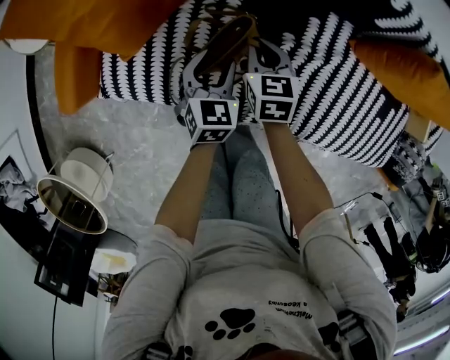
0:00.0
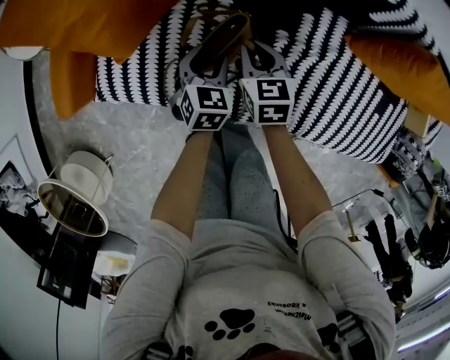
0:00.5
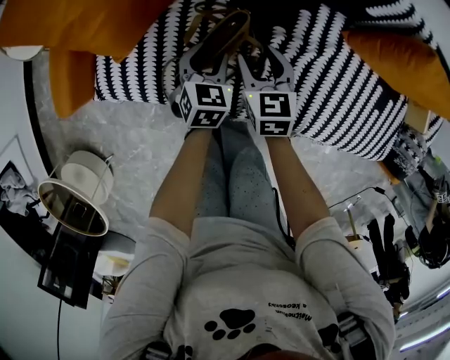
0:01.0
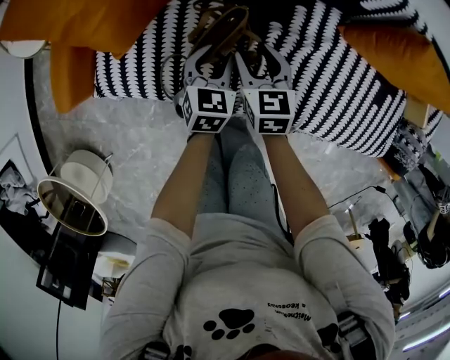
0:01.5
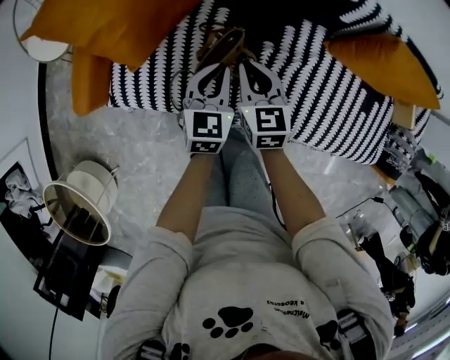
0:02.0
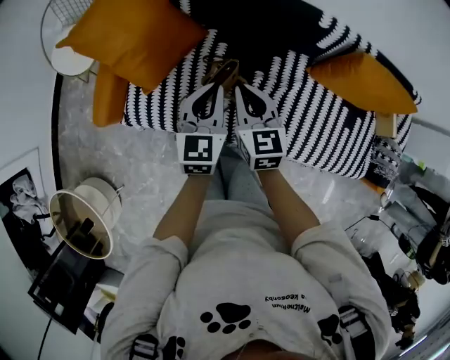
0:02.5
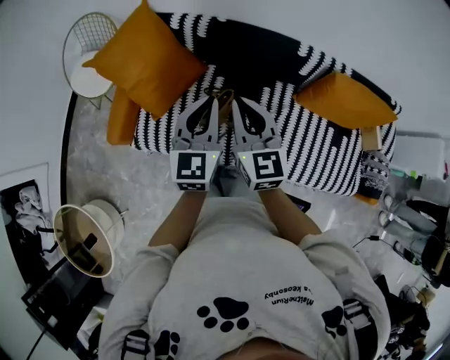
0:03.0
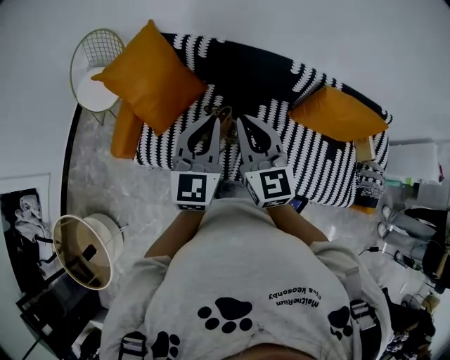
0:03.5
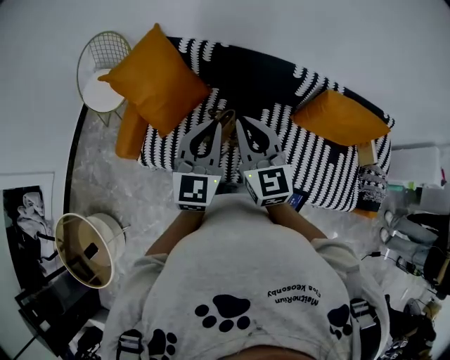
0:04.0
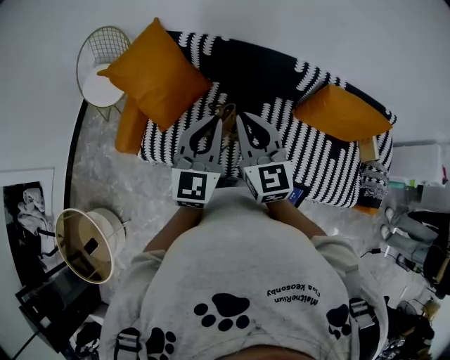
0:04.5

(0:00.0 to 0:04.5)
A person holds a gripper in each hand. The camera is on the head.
0:00.0 - 0:02.0: The right gripper heads upward and backward, covering roughly 15 cm, and opens and closes again, while the left gripper moves upward, some 15 cm, and closes its fingers.
0:02.0 - 0:04.5: The two grippers go roughly 35 cm upward. The right gripper turns by about 30 degrees. Meanwhile the left gripper turns by roughly 20 degrees.

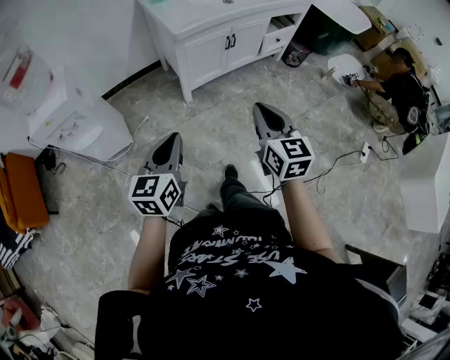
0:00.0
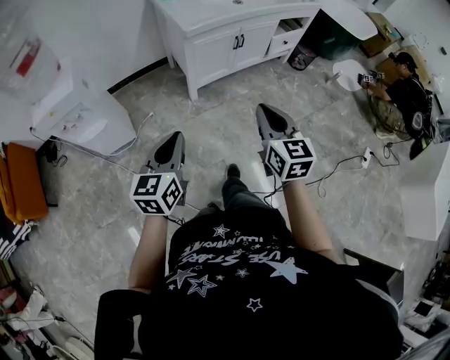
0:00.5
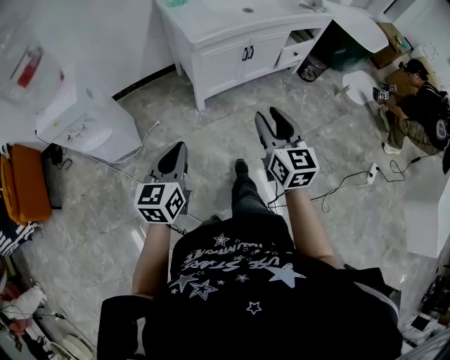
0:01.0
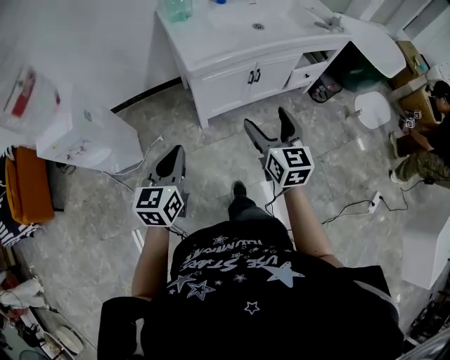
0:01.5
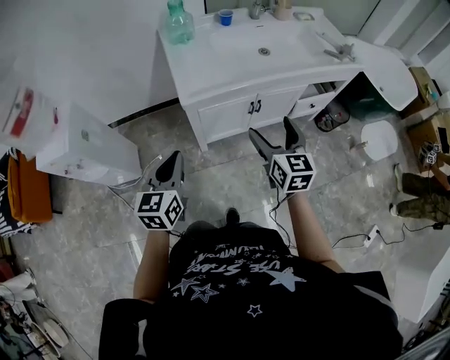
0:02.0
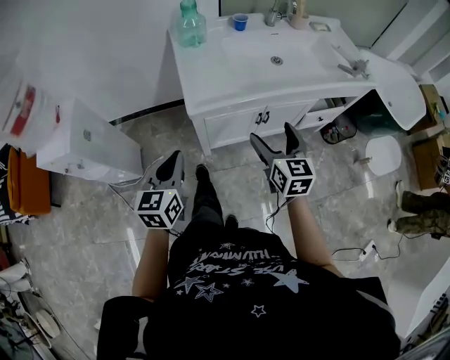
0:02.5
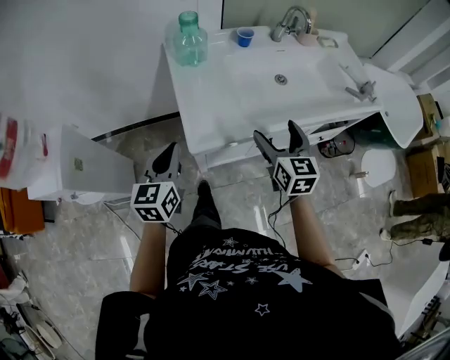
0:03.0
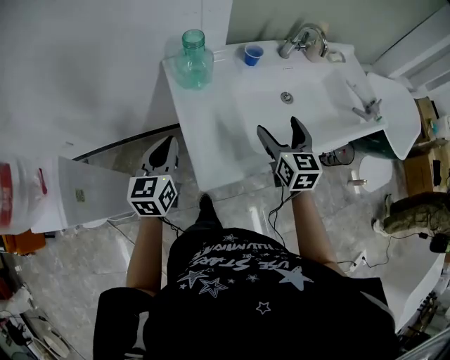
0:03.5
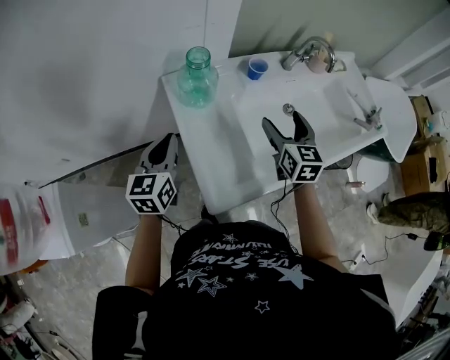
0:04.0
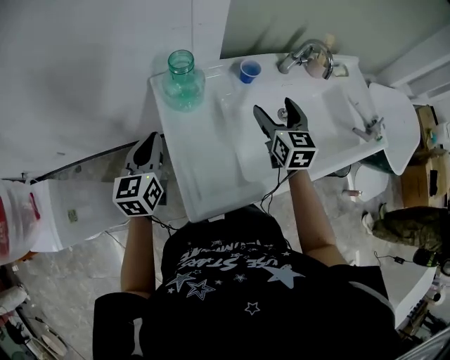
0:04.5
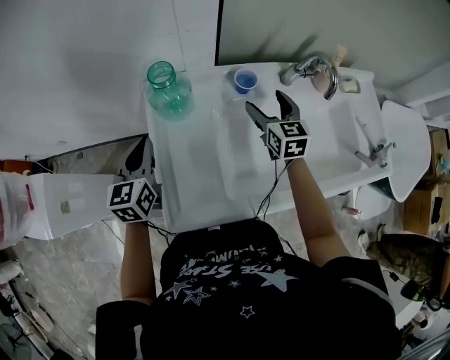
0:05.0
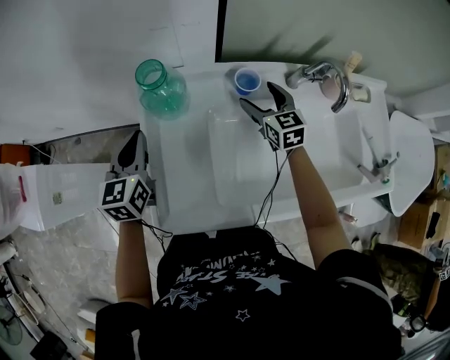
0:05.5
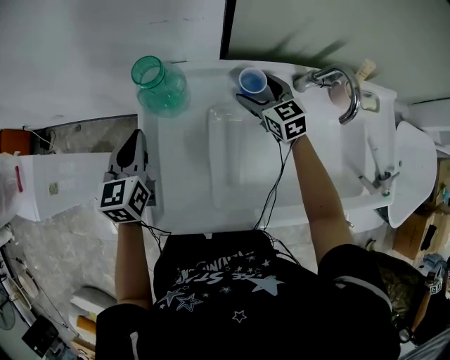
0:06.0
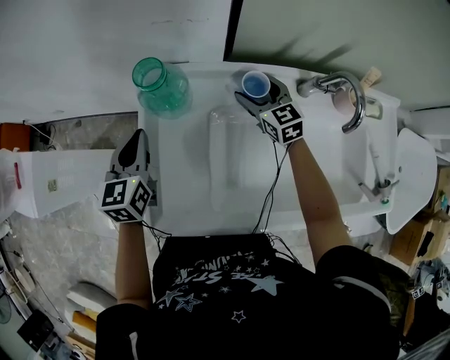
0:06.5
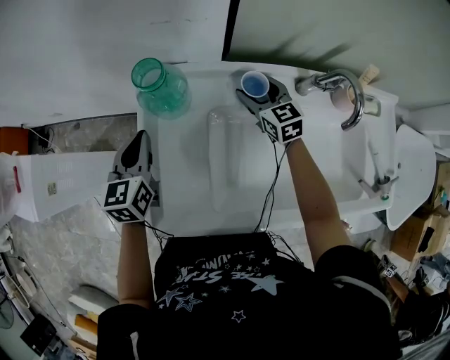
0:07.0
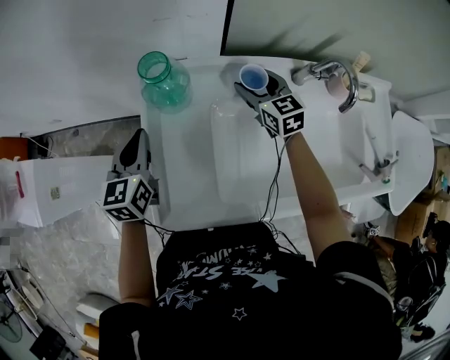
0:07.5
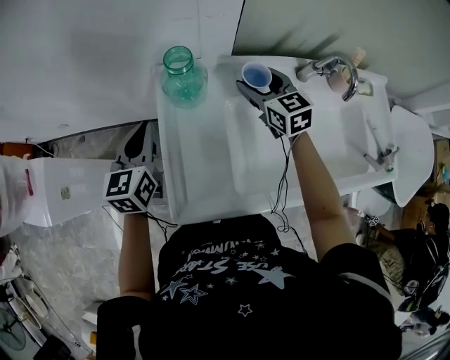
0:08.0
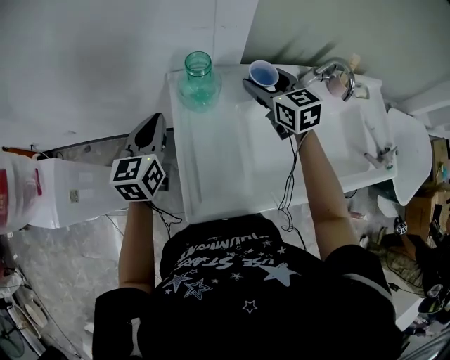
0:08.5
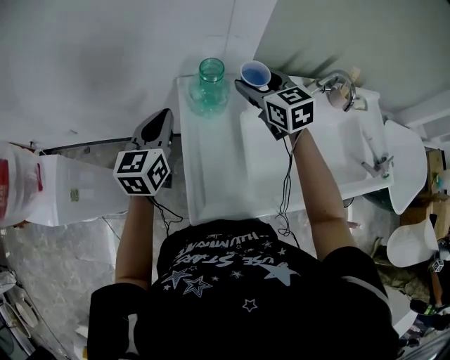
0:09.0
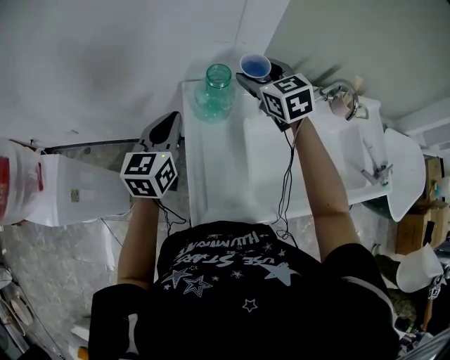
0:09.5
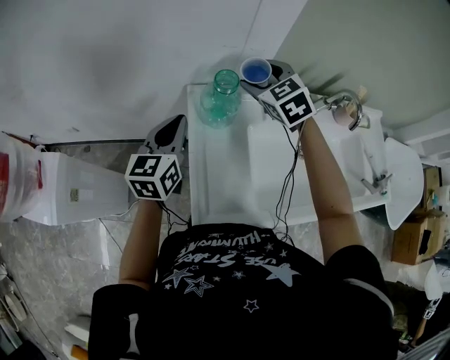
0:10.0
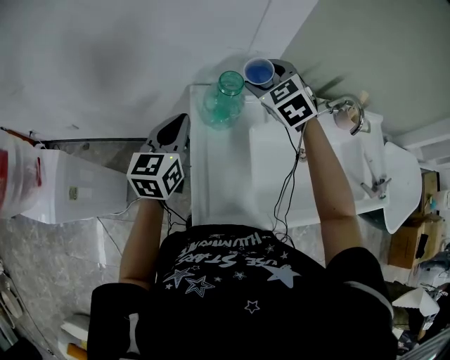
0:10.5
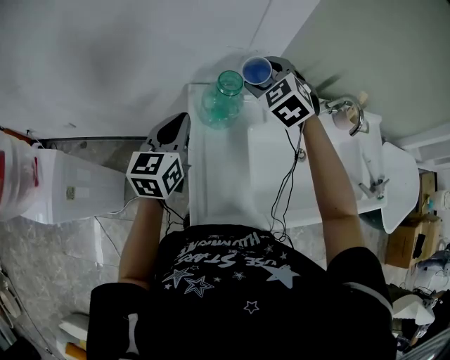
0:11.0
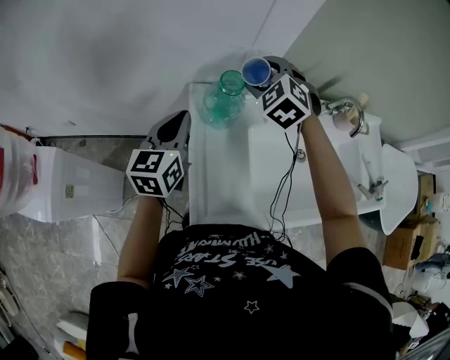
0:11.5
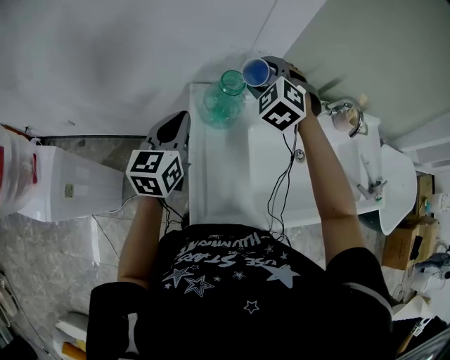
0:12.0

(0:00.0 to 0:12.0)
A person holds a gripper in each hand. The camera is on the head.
0:00.0 - 0:02.0: The grippers both shift forward by roughly 35 cm. The right gripper opens its fingers.
0:02.0 - 0:04.0: Both grippers are carried forward, about 40 cm.
0:04.0 - 0:06.0: The right gripper shifts by some 25 cm, and rotates roughly 40 degrees. Meanwhile the left gripper changes place by approximately 10 cm, and rotates about 30 degrees.
0:06.0 - 0:08.0: The left gripper changes place by some 5 cm. The right gripper heads upward and to the left, covering roughly 10 cm.
0:08.0 - 0:10.0: The right gripper shifts some 15 cm to the left and upward, and turns by roughly 30 degrees.
0:10.0 - 0:12.0: The right gripper swivels some 30 degrees.

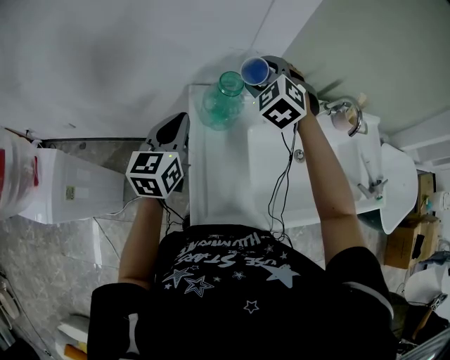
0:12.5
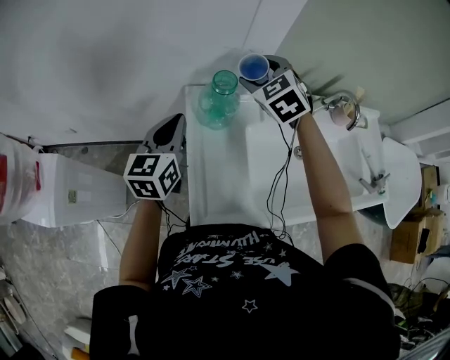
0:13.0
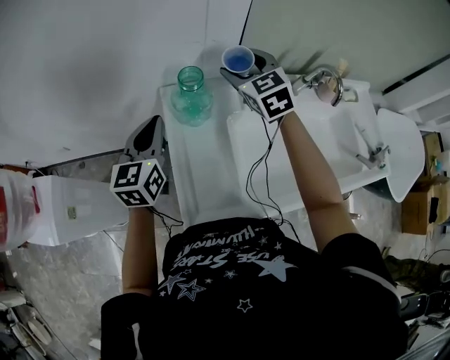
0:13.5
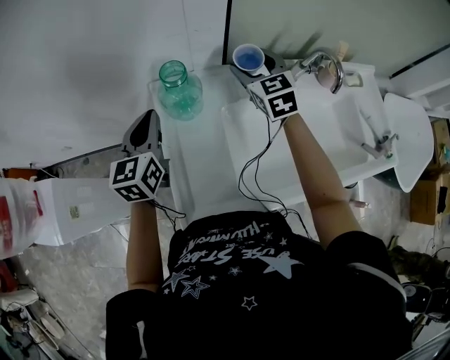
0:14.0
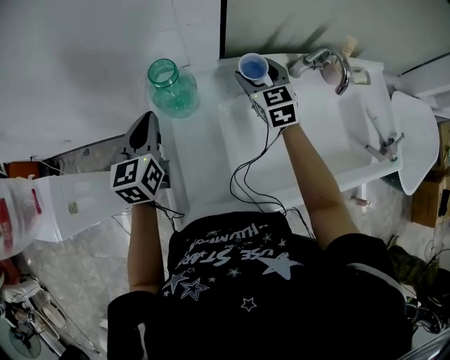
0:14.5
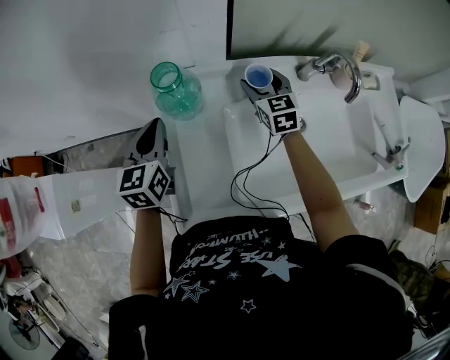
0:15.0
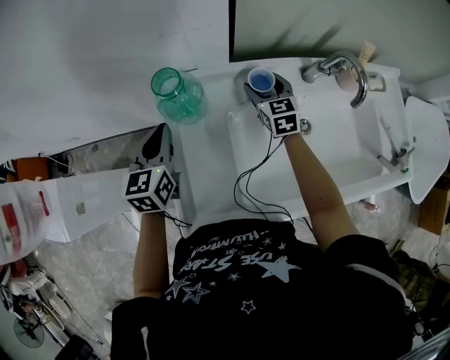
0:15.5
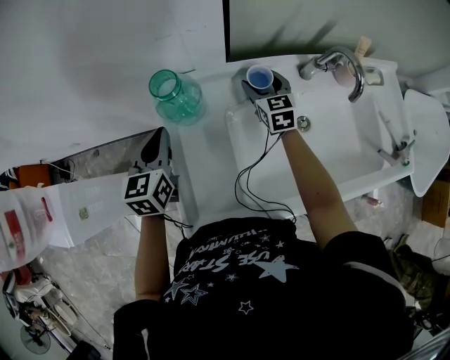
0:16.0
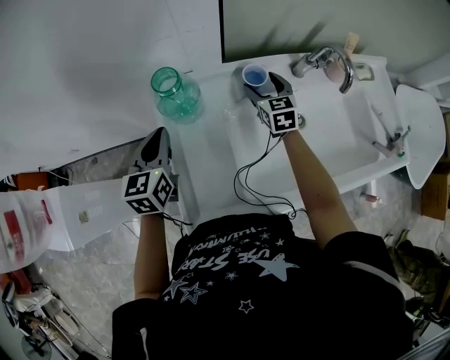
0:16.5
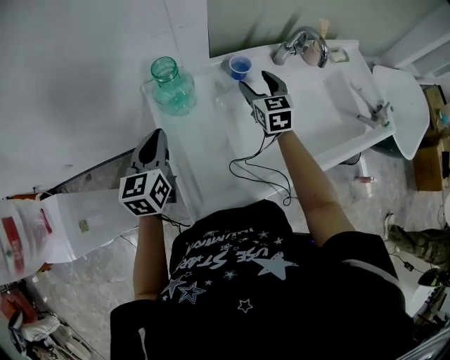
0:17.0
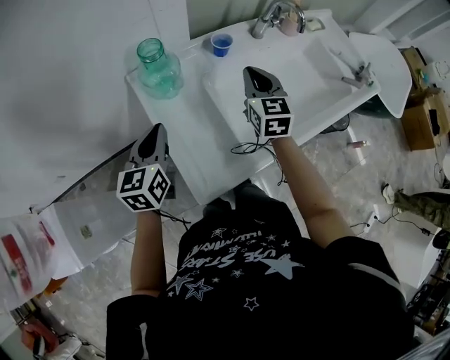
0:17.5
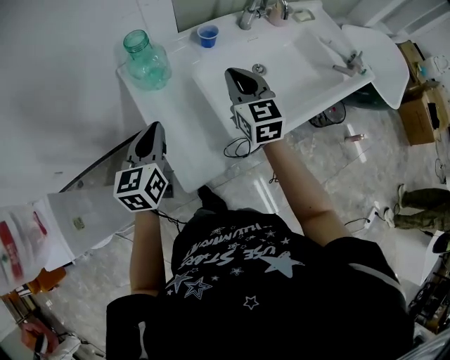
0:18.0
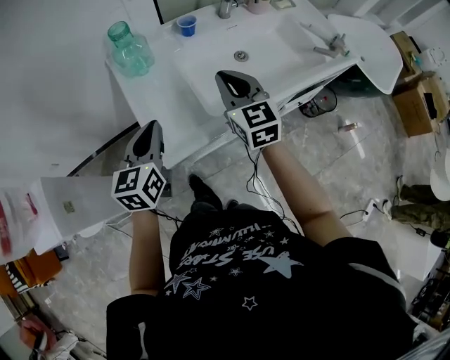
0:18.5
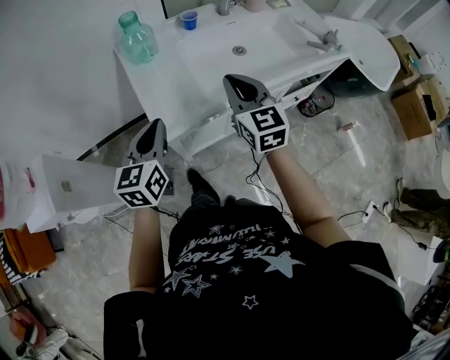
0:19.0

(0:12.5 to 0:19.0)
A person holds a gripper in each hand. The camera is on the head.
0:12.5 - 0:14.5: The right gripper travels to the right and downward by approximately 20 cm, and rolls clockwise, seen from behind, by about 40 degrees, while the left gripper moves to the right, about 5 cm.
0:14.5 - 0:17.0: The grippers both shift backward by approximately 5 cm.
0:17.0 - 0:19.0: The right gripper goes some 35 cm backward, and closes. The left gripper goes some 25 cm backward and to the right.

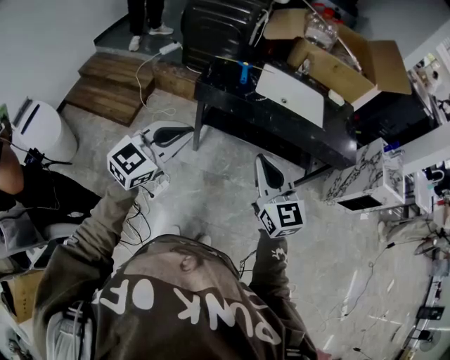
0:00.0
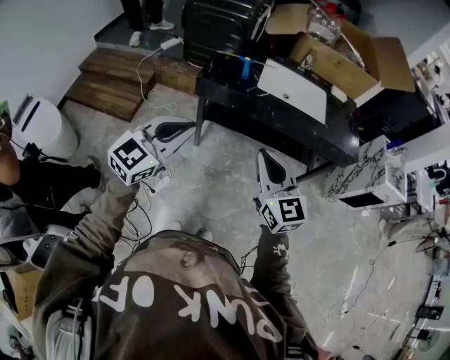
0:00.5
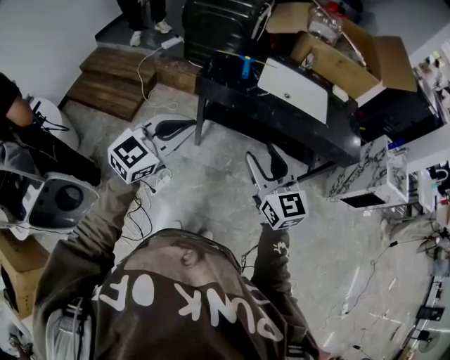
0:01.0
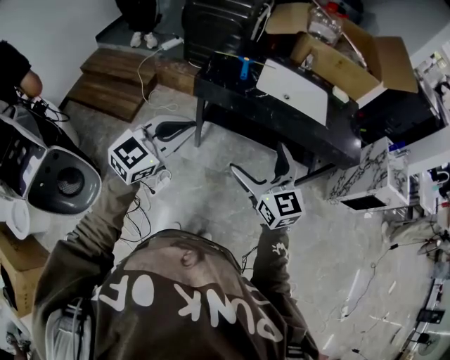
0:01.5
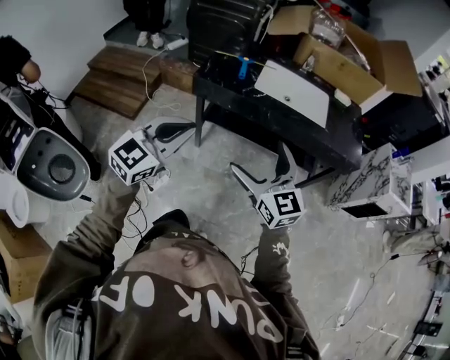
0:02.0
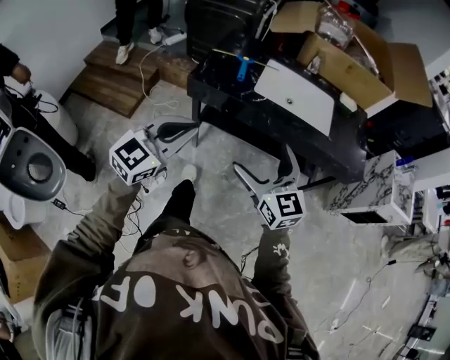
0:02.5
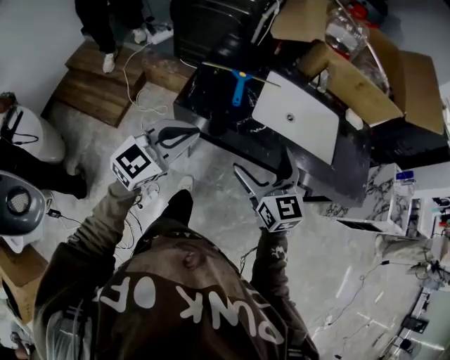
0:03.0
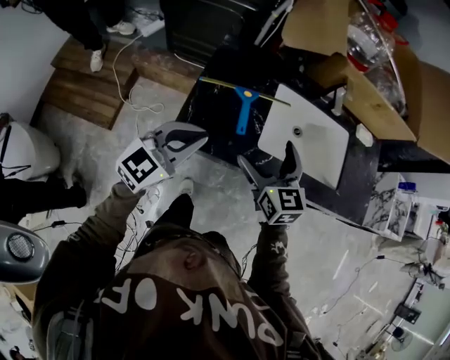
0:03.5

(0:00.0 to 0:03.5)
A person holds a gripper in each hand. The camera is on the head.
0:00.0 - 0:02.0: The right gripper moves some 5 cm, and opens its fingers. Meanwhile the left gripper goes some 5 cm to the right.
0:02.0 - 0:03.5: The pair of grippers is taken forward, some 40 cm. The right gripper turns by approximately 20 degrees.
